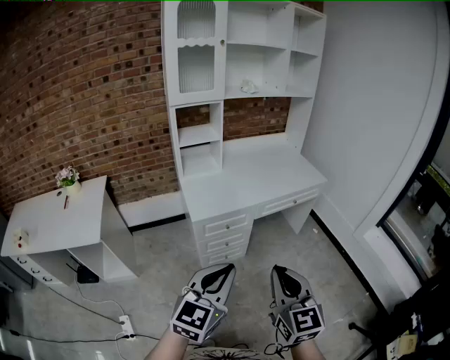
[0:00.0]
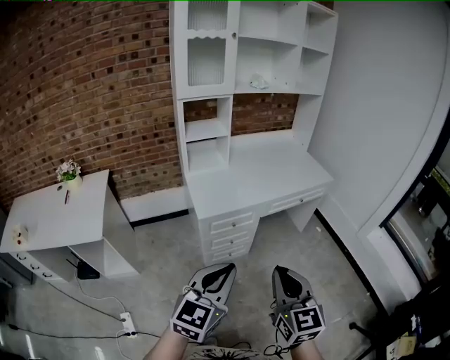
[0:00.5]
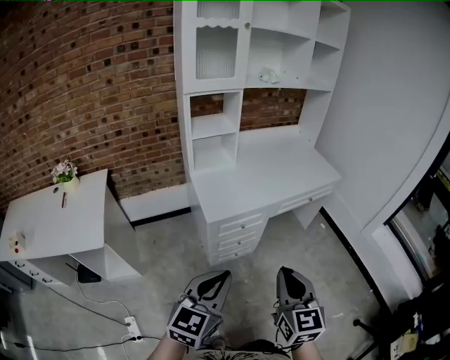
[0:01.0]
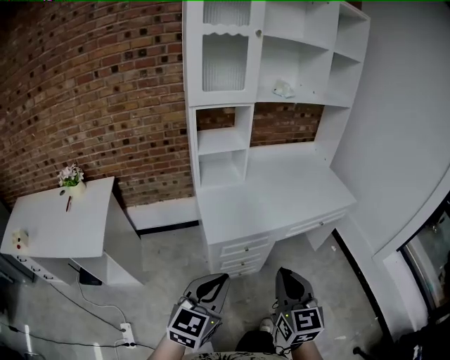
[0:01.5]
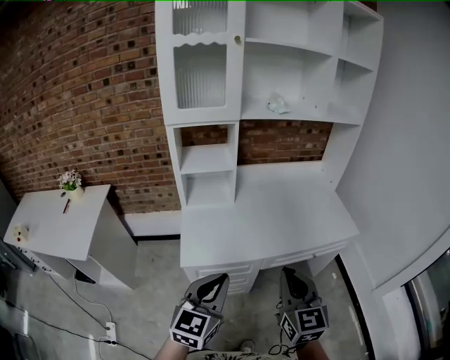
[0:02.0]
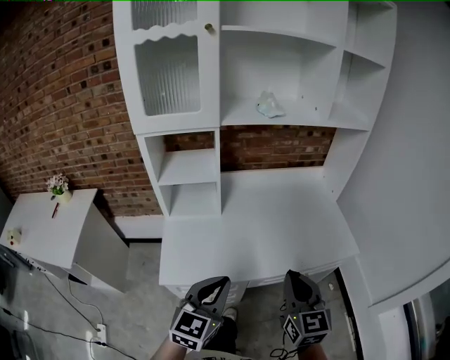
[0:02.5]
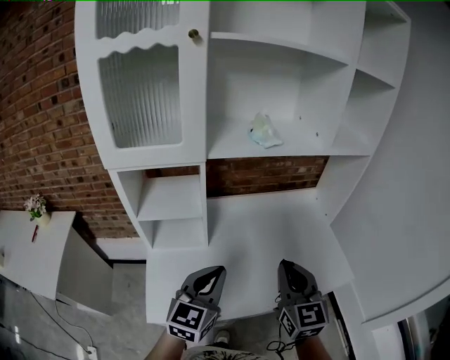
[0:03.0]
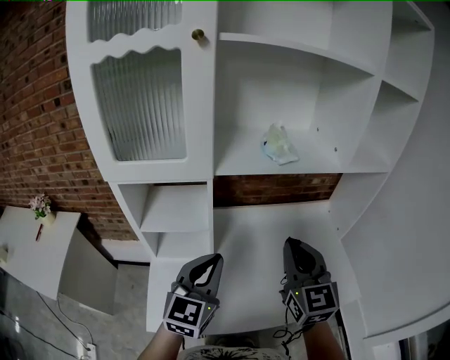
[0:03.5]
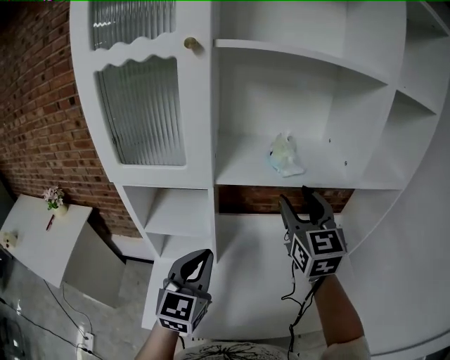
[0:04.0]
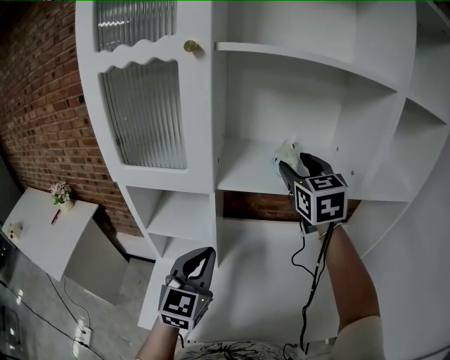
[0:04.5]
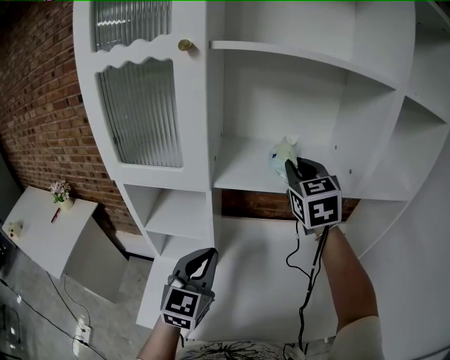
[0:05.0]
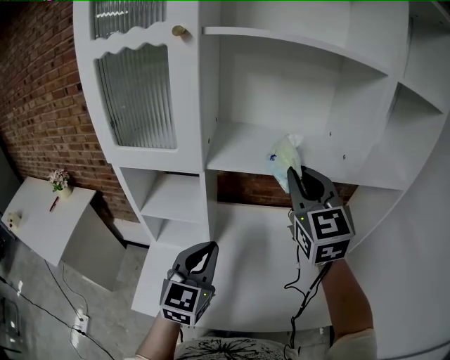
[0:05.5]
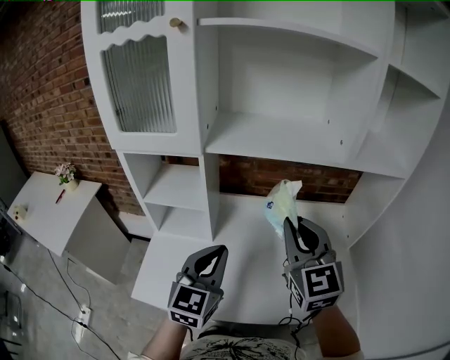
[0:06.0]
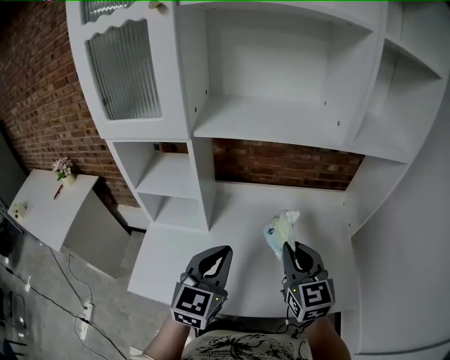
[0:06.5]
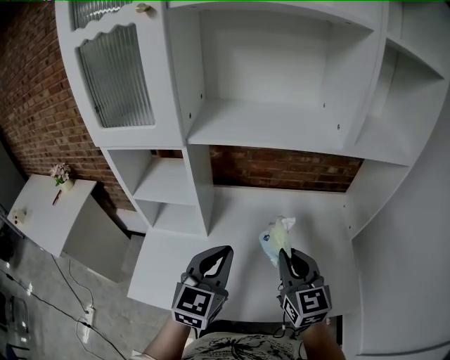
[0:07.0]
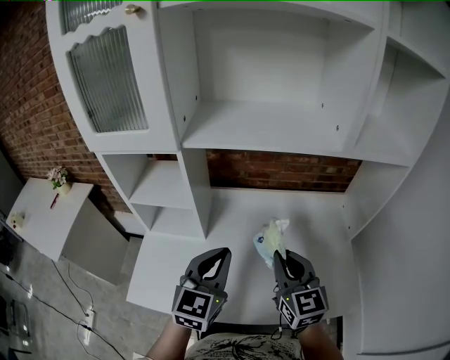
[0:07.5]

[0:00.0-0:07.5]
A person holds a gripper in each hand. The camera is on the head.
0:00.0 to 0:02.0: Both grippers move forward, some 35 cm.
0:02.0 to 0:04.0: The two grippers travel together, forward, approximately 50 cm. The right gripper opens.
0:04.0 to 0:05.5: The right gripper moves some 10 cm forward and comes back, and closes its fingers. The left gripper changes place by some 5 cm.
0:05.5 to 0:07.5: The right gripper is displaced downward and backward by some 25 cm, and changes its angle by some 20 degrees. The left gripper travels to the right and downward by approximately 10 cm.

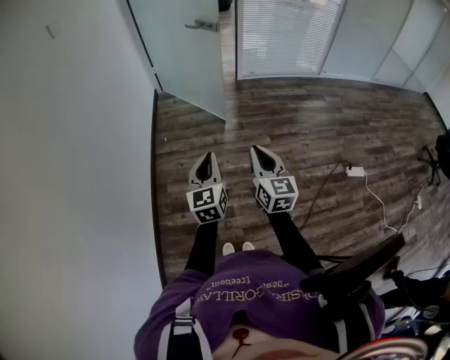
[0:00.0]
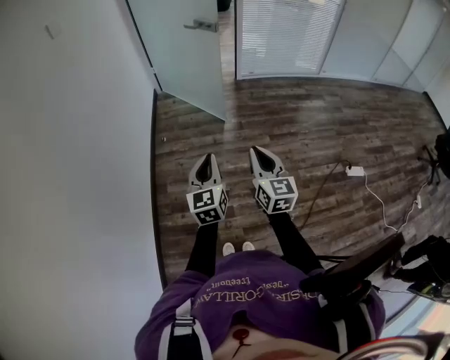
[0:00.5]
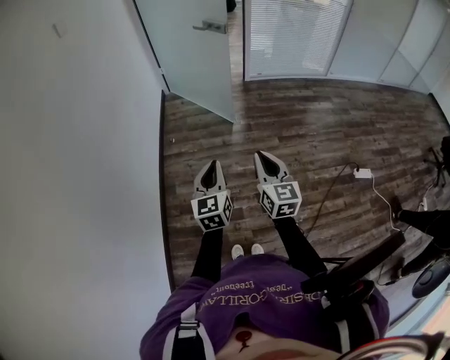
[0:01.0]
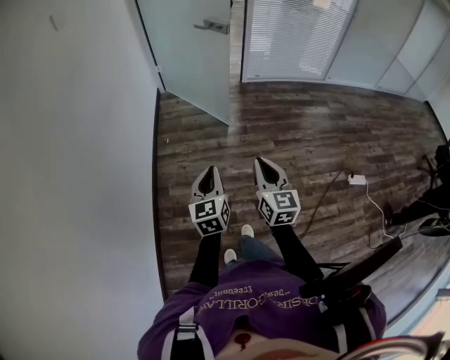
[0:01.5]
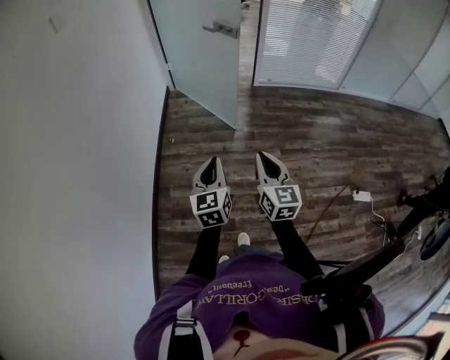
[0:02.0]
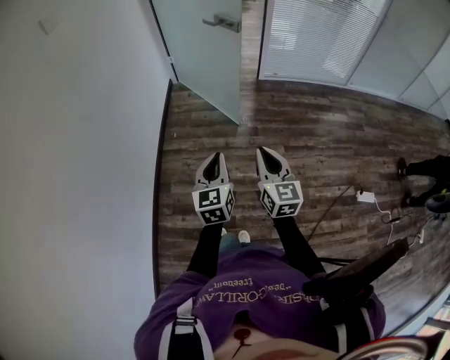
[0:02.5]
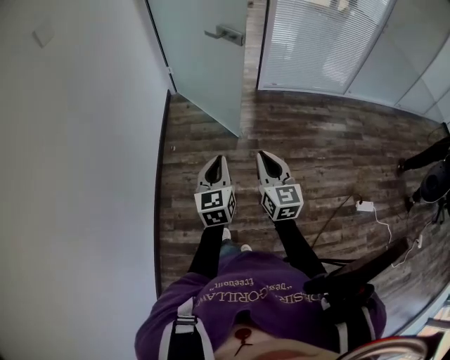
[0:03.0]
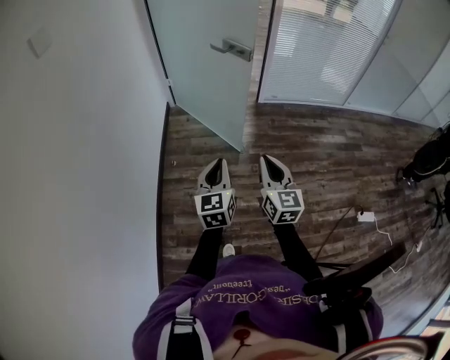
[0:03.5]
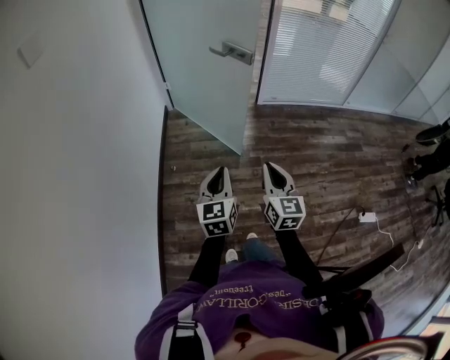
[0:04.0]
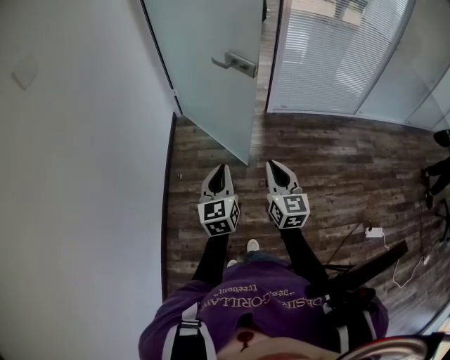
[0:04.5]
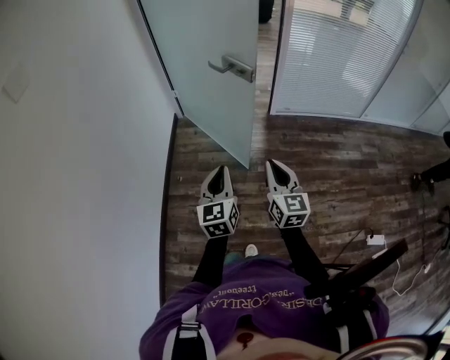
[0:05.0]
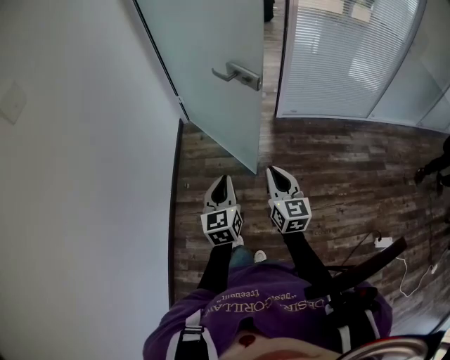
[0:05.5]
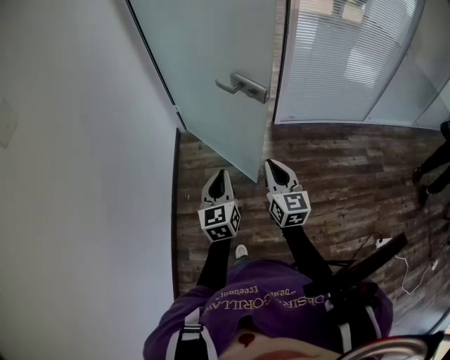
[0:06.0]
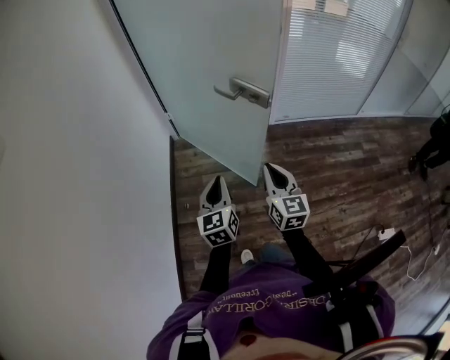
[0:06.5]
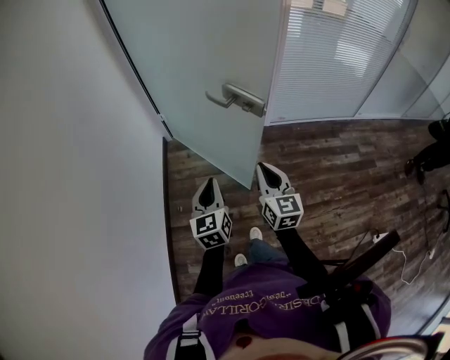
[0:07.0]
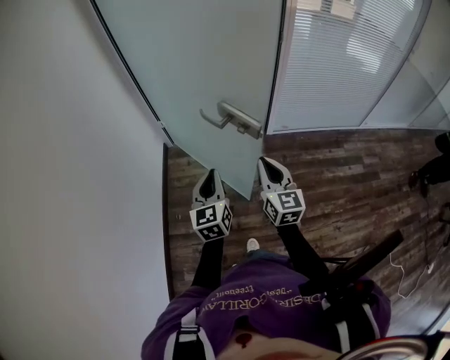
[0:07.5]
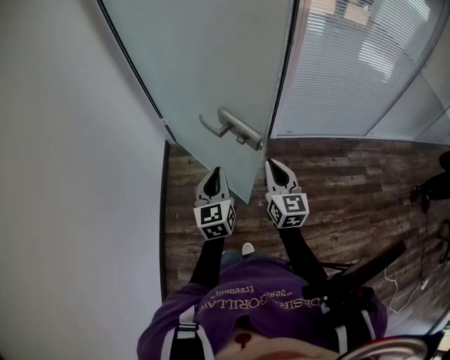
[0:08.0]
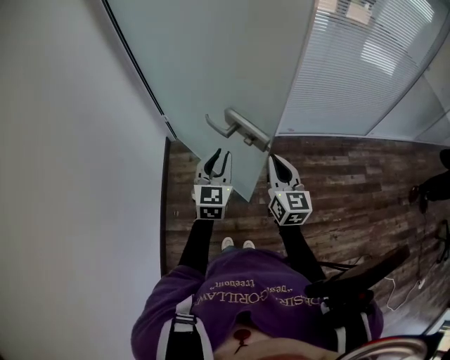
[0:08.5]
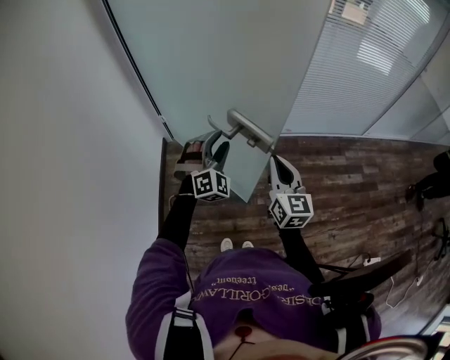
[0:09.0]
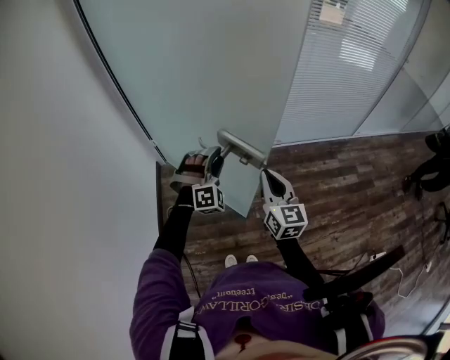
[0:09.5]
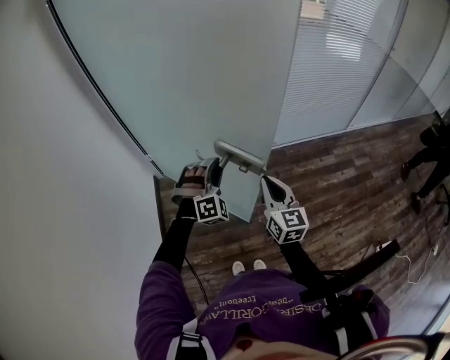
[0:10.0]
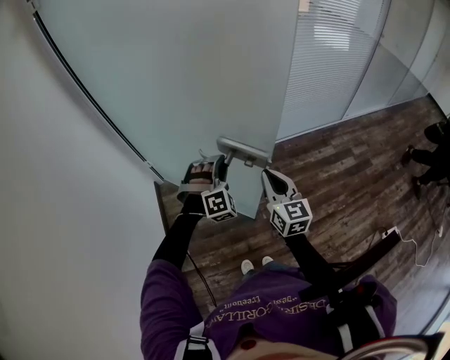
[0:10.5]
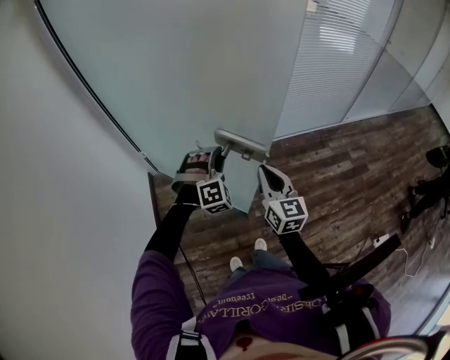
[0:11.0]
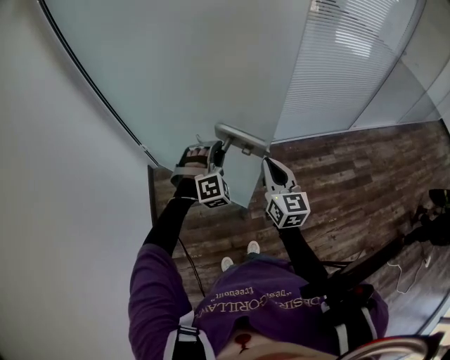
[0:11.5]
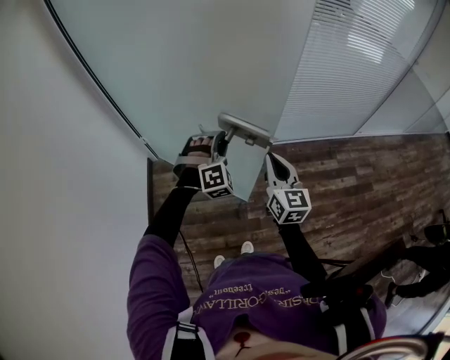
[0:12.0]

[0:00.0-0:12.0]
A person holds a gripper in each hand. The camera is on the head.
0:00.0 to 0:02.0: Both grippers travel together forward, roughly 10 cm.
0:02.0 to 0:04.0: The two grippers go roughly 20 cm forward.
0:04.0 to 0:06.0: The grippers both shift forward by roughly 25 cm.
0:06.0 to 0:08.0: The two grippers go some 20 cm forward.
0:08.0 to 0:10.0: The left gripper travels forward by roughly 10 cm, twists about 90 degrees clockwise, seen from behind, and opens up.
0:10.0 to 0:12.0: The two grippers go some 15 cm forward and to the right.

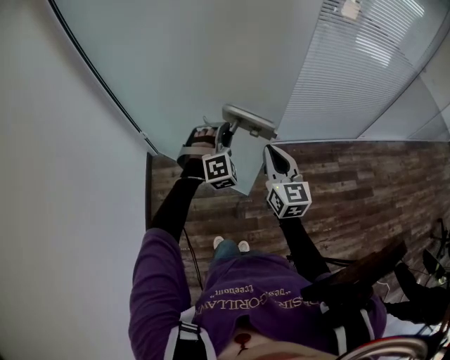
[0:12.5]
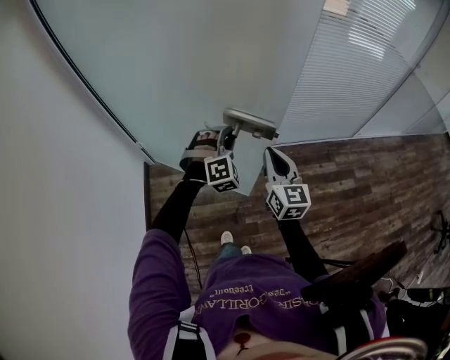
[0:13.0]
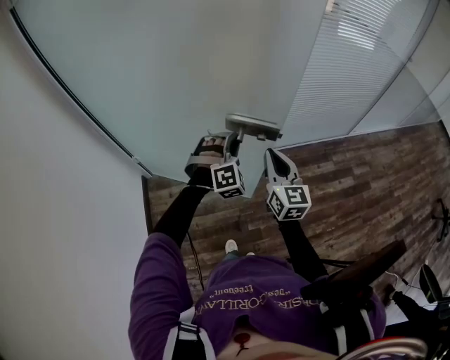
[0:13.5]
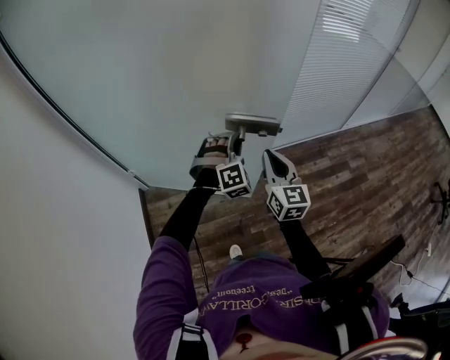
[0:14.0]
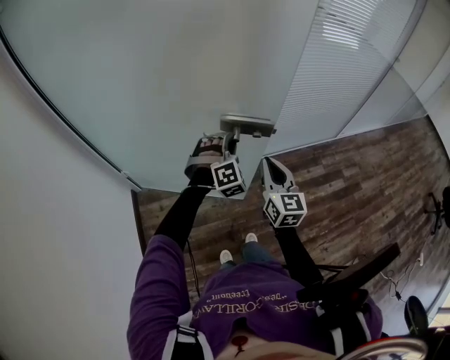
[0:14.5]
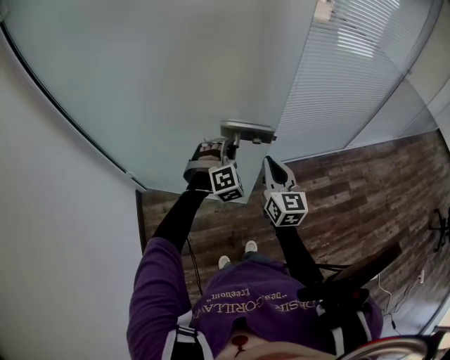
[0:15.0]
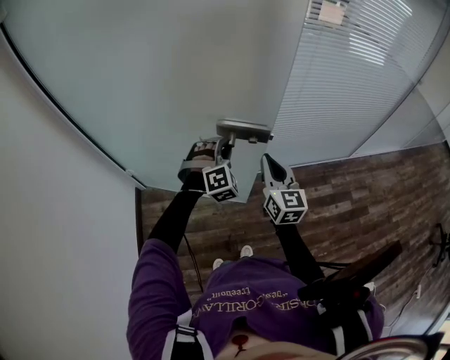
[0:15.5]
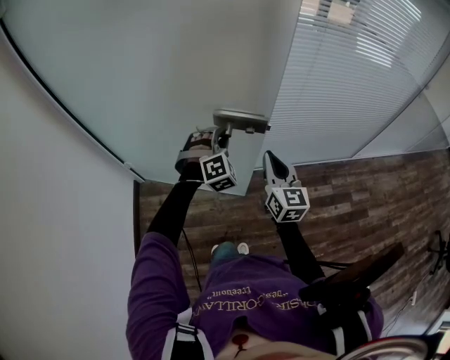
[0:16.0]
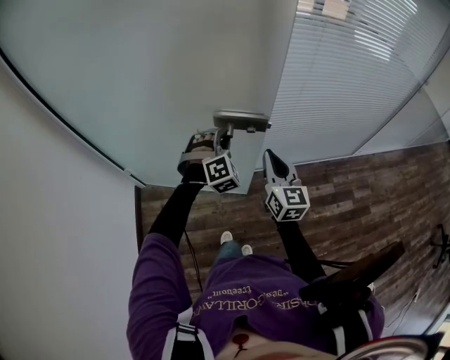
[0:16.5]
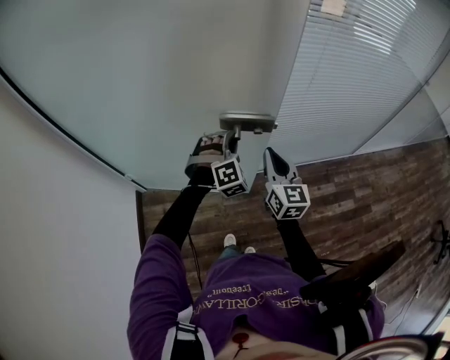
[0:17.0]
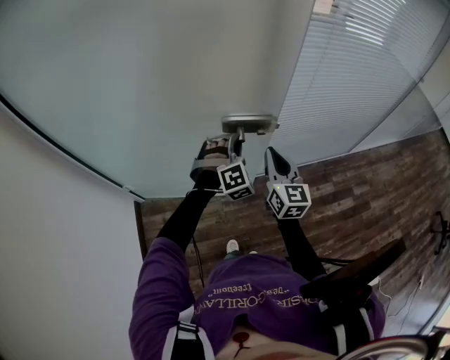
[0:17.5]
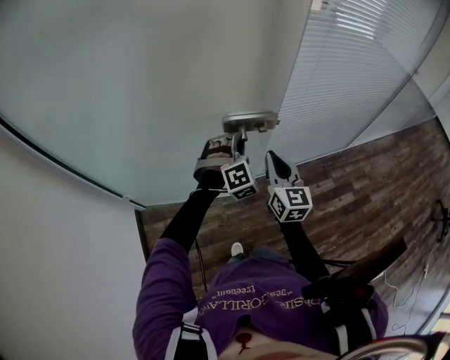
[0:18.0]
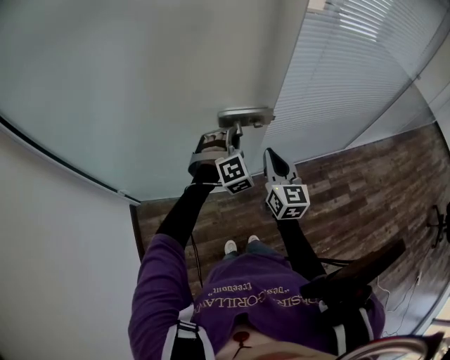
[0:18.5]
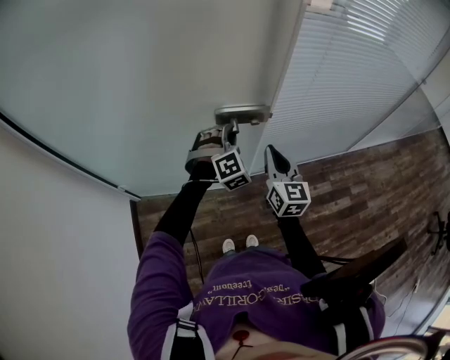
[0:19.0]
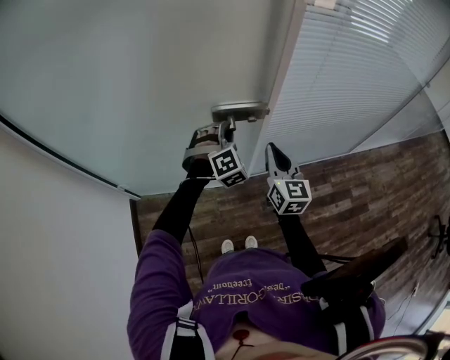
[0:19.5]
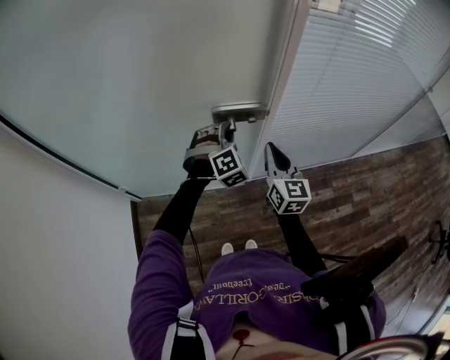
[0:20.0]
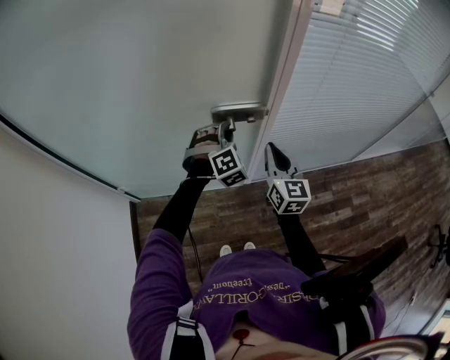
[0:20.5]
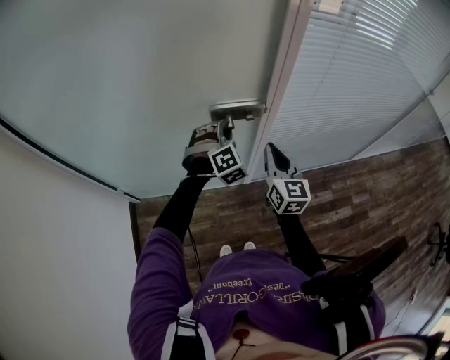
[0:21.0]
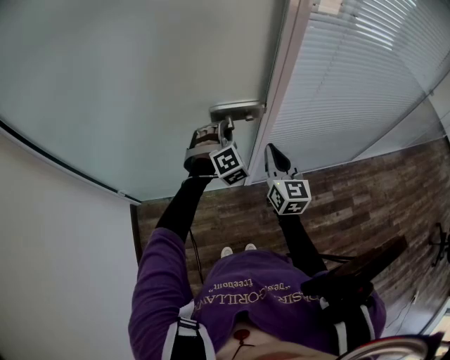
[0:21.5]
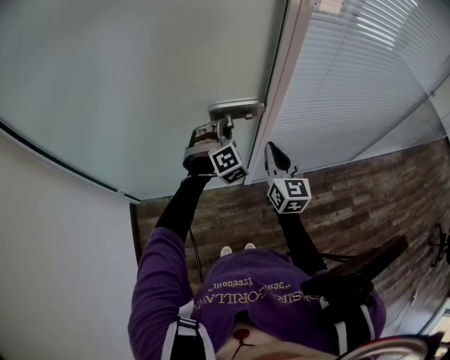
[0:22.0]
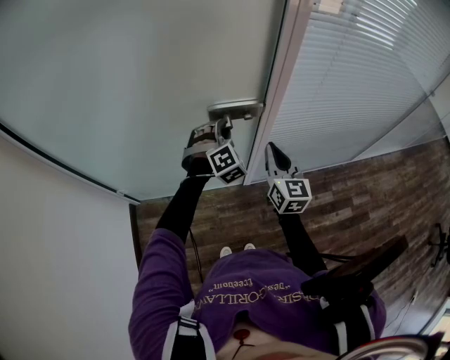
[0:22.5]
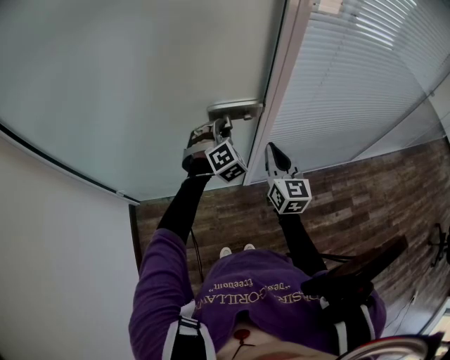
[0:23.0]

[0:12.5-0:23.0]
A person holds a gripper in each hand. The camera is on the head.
0:12.5 to 0:14.5: Both grippers travel together forward, some 10 cm.
0:14.5 to 0:16.5: The left gripper is displaced forward by roughly 10 cm. The right gripper heads forward and to the right, covering some 15 cm.
0:16.5 to 0:19.0: Both grippers move forward, roughly 10 cm.
0:19.0 to 0:21.0: The two grippers go roughly 5 cm forward.
0:21.0 to 0:23.0: The grippers move only a little.
